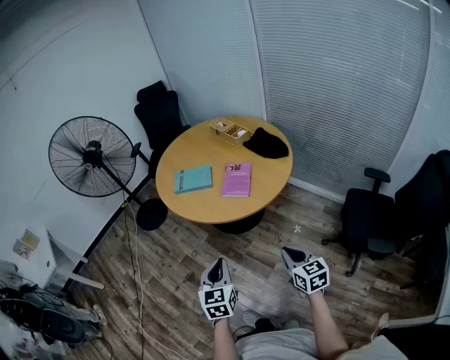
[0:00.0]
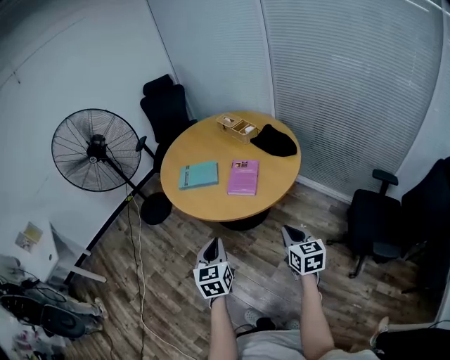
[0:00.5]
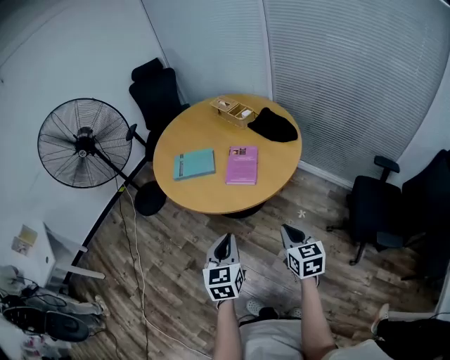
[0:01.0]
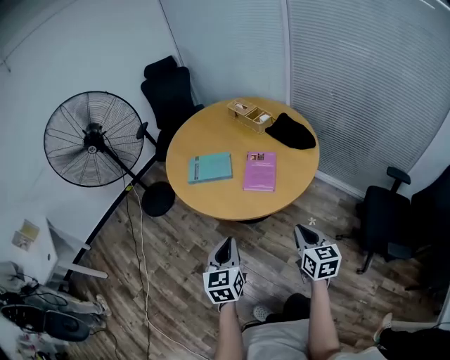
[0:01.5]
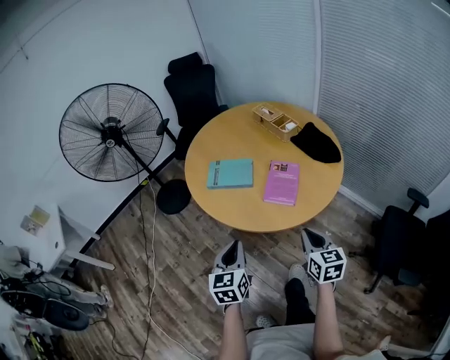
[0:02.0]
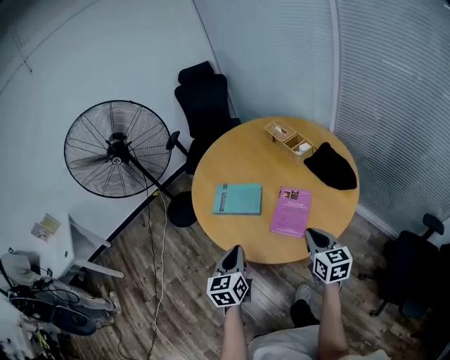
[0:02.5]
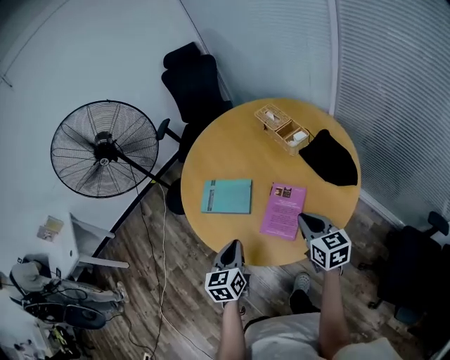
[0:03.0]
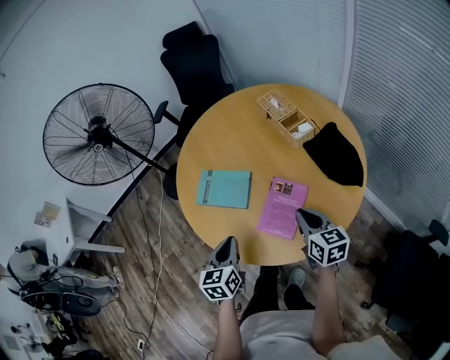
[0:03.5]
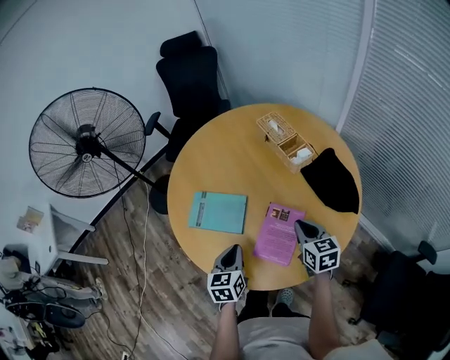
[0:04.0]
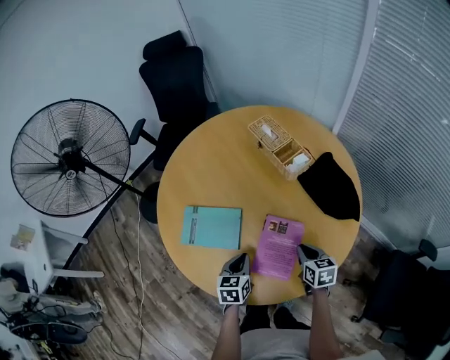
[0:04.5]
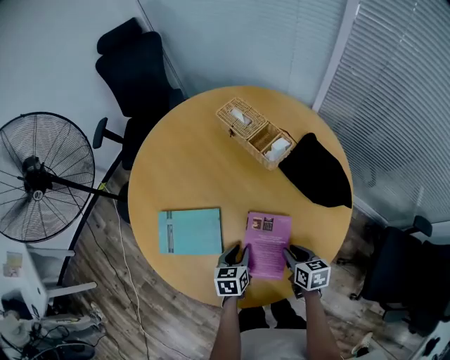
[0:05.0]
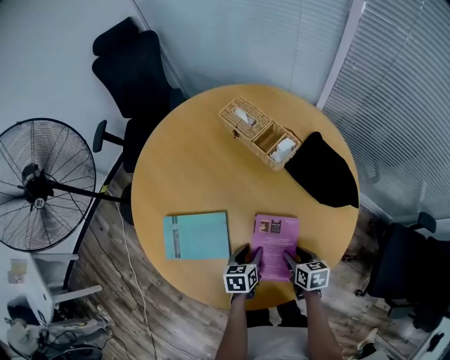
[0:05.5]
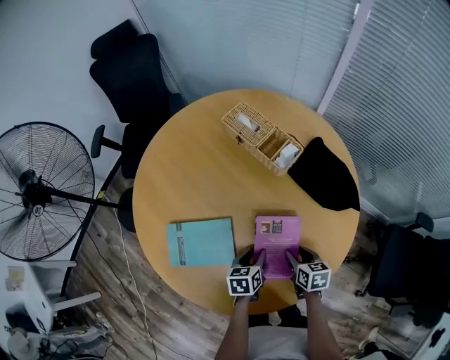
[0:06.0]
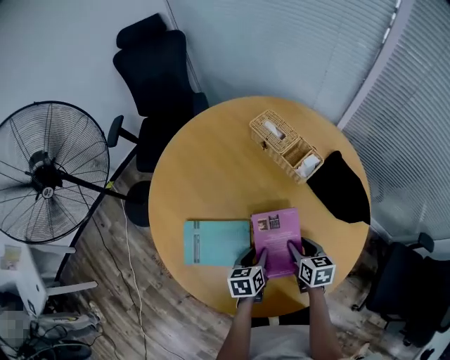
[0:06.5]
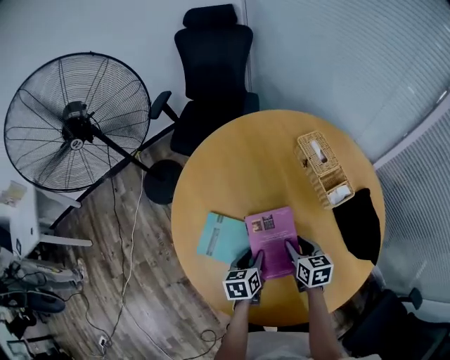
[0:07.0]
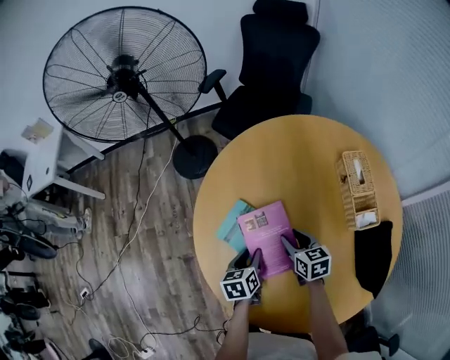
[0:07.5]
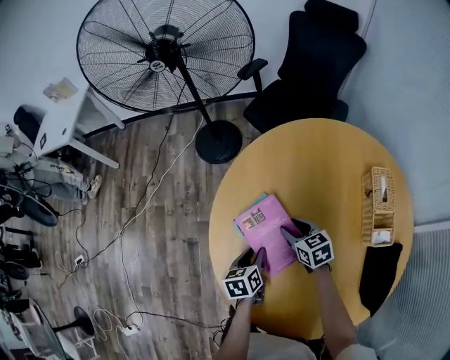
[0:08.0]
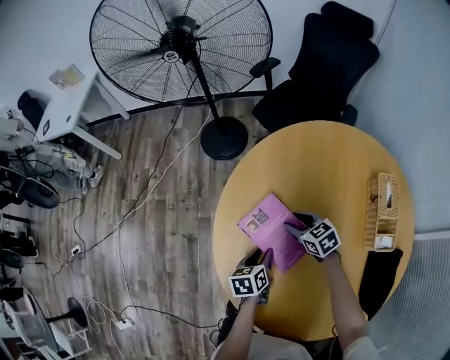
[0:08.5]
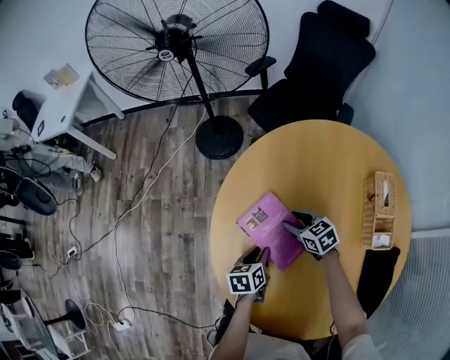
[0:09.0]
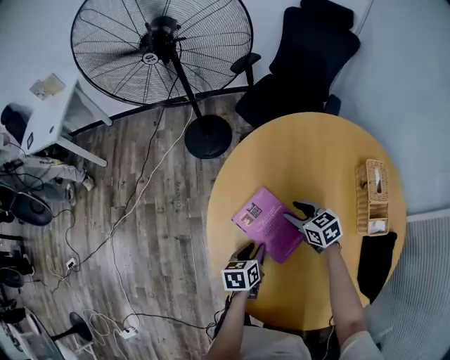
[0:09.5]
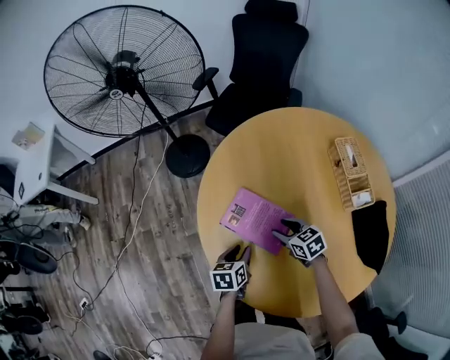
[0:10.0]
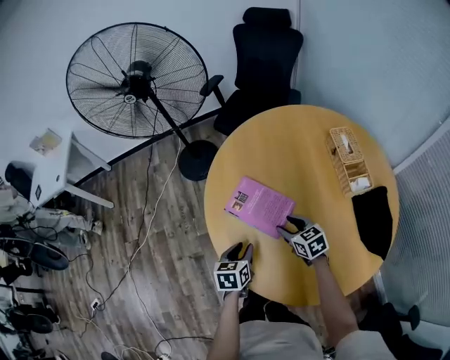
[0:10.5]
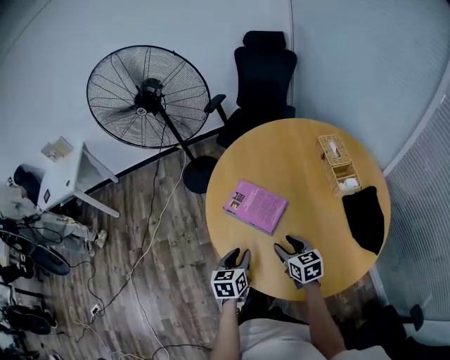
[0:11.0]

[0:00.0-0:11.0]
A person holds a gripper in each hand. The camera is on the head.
0:00.0 to 0:02.0: The left gripper is displaced forward and to the left by roughly 20 cm; the right gripper heads forward, covering roughly 20 cm.
0:02.0 to 0:03.5: The left gripper moves forward and to the right, approximately 20 cm, while the right gripper moves forward, approximately 25 cm.
0:03.5 to 0:05.5: The left gripper travels downward, forward and to the right by about 30 cm, changes its angle by some 40 degrees, and opens up. The right gripper is displaced downward by some 20 cm, turns by about 30 degrees, and opens its fingers.
0:05.5 to 0:07.5: The right gripper moves roughly 30 cm, and rolls counterclockwise, seen from behind, by approximately 40 degrees, while the left gripper shifts by approximately 20 cm, and rotates some 50 degrees.
0:07.5 to 0:09.0: The right gripper shifts approximately 10 cm forward and to the left, and swivels some 30 degrees.
0:09.0 to 0:11.0: The right gripper goes approximately 25 cm backward and upward, and swivels approximately 40 degrees. Meanwhile the left gripper travels backward and upward by some 15 cm, and swivels approximately 30 degrees.

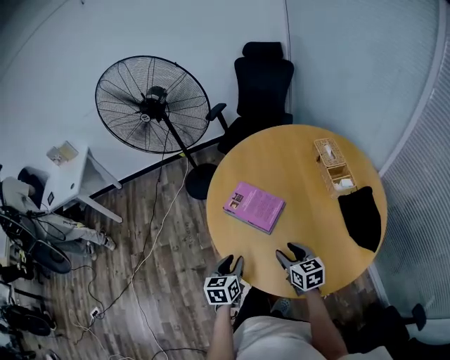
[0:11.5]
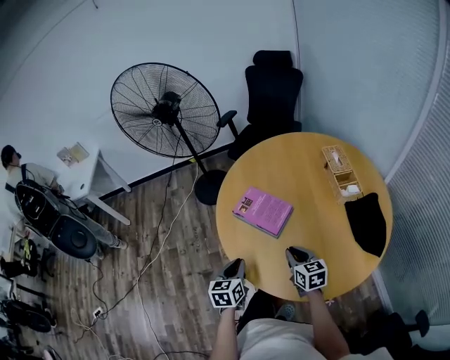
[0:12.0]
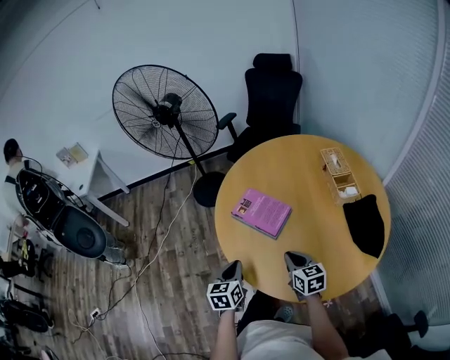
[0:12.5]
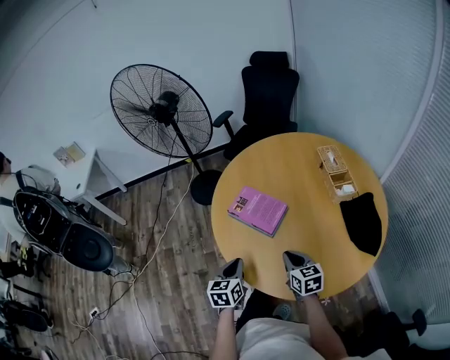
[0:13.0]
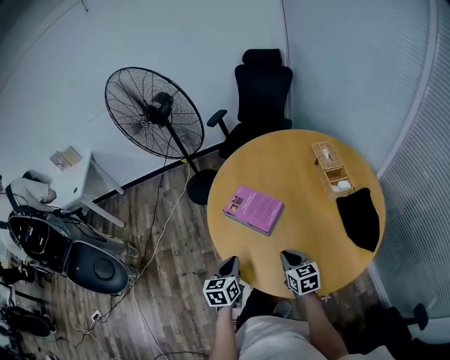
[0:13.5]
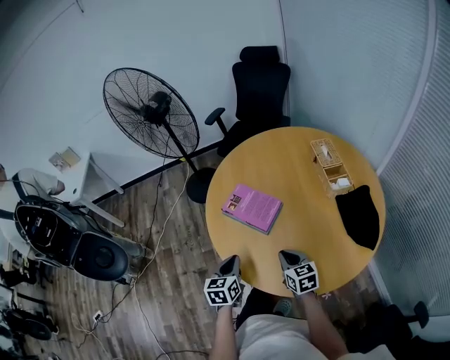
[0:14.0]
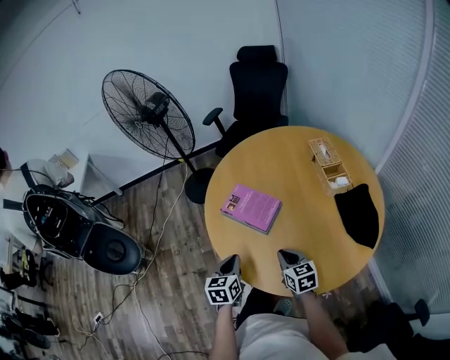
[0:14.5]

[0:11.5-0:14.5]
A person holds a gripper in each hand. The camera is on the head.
0:11.5 to 0:13.0: The left gripper closes. Meanwhile the right gripper closes up.
0:13.0 to 0:14.5: The grippers move only a little.

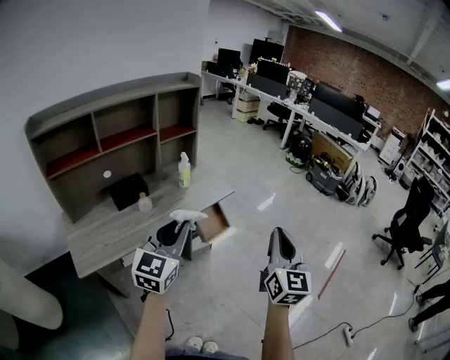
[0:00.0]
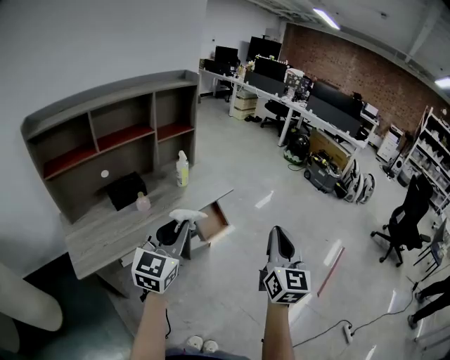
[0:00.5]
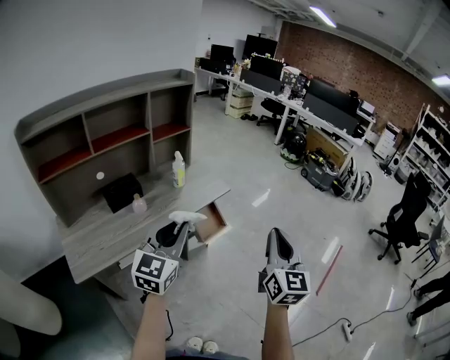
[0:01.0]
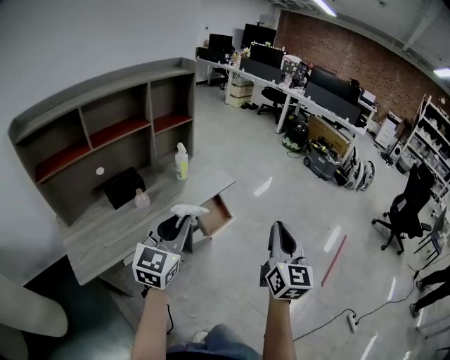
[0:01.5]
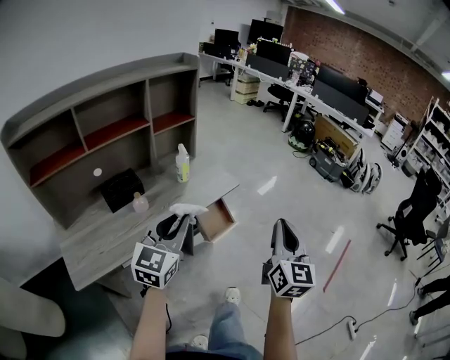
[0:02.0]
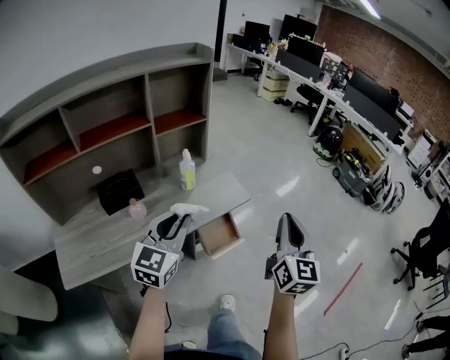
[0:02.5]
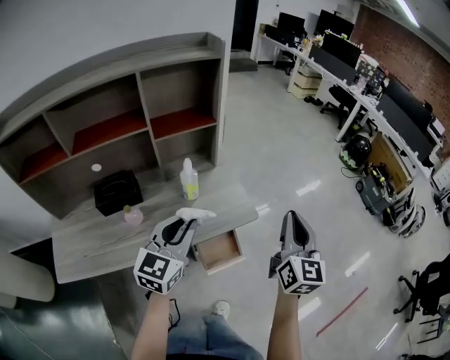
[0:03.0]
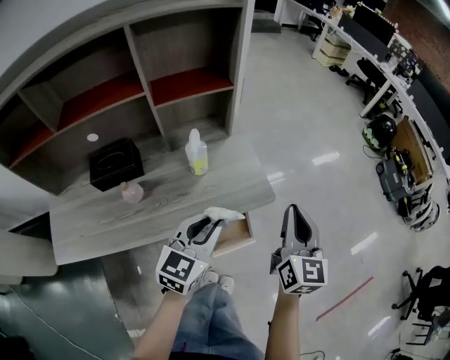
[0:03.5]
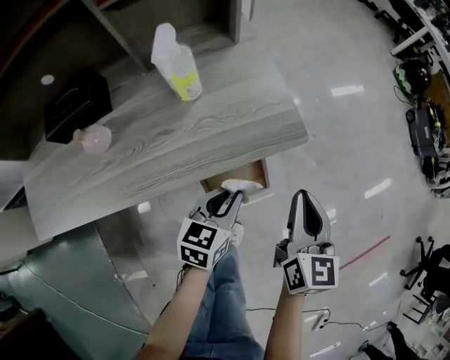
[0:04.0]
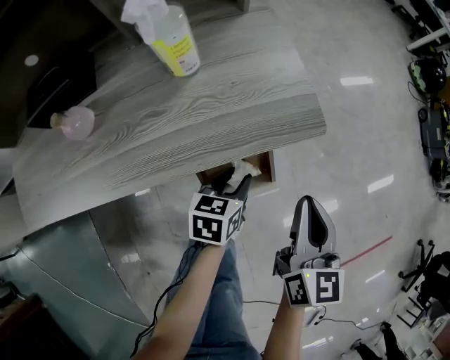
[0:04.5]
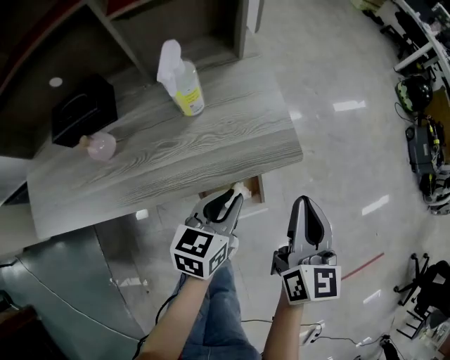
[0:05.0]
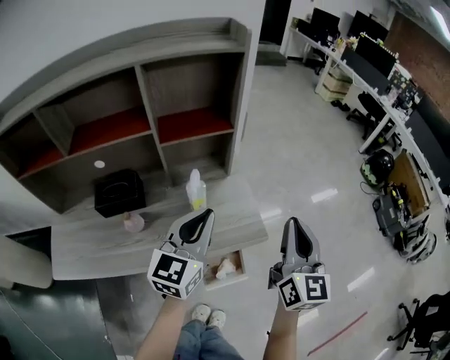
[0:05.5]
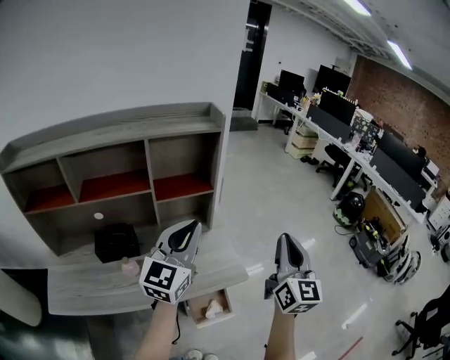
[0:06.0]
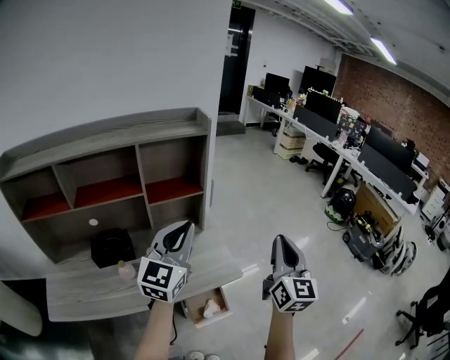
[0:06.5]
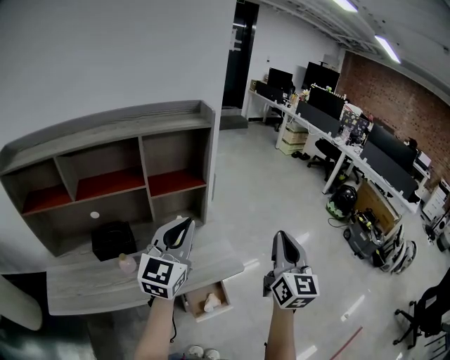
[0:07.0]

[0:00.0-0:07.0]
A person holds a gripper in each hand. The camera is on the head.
0:00.0 to 0:02.0: The two grippers go approximately 10 cm forward.
0:02.0 to 0:03.5: The left gripper heads forward and downward, covering some 30 cm, and rotates about 20 degrees. The right gripper heads forward, covering about 35 cm, and rotates about 20 degrees.
0:03.5 to 0:05.0: Both grippers travel together downward, roughly 20 cm. The left gripper rotates about 30 degrees.
0:05.0 to 0:07.0: Both grippers travel together upward, roughly 35 cm. The left gripper tilts its fingers about 40 degrees upward; the right gripper turns by about 30 degrees.

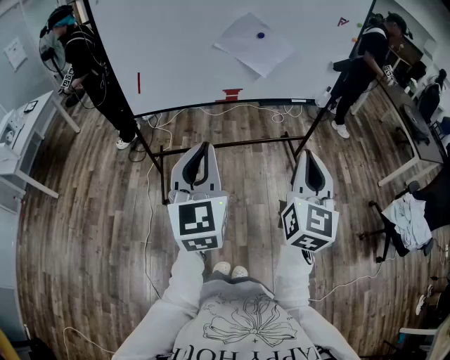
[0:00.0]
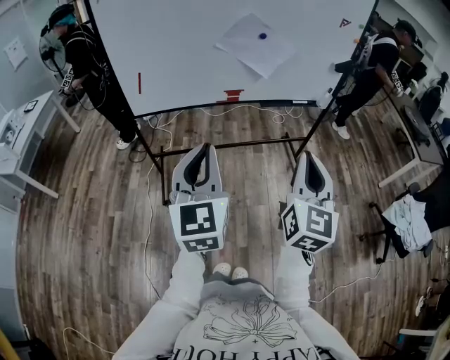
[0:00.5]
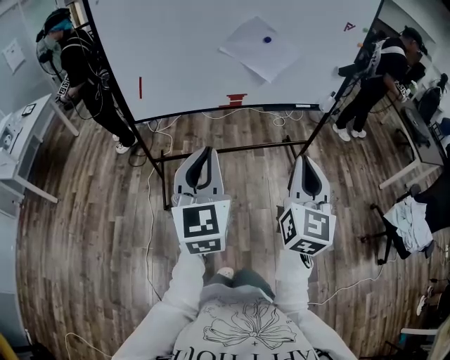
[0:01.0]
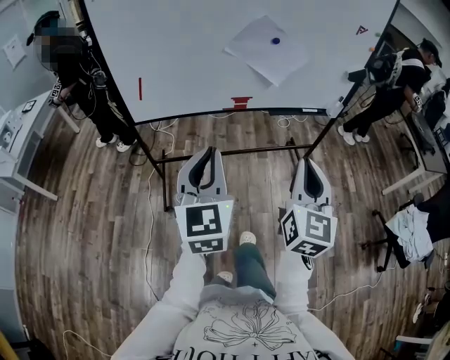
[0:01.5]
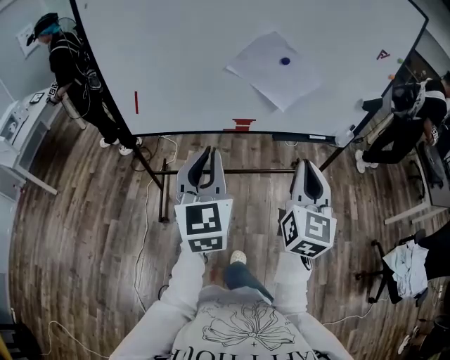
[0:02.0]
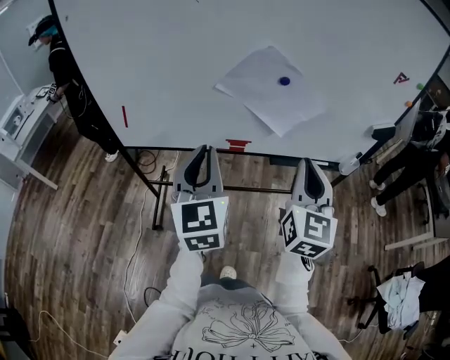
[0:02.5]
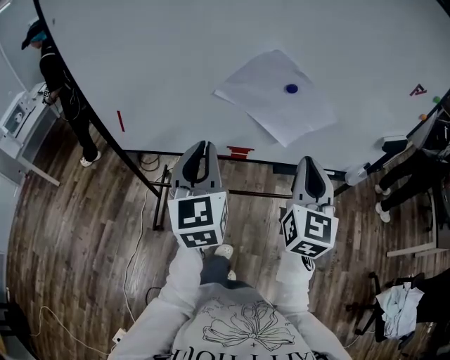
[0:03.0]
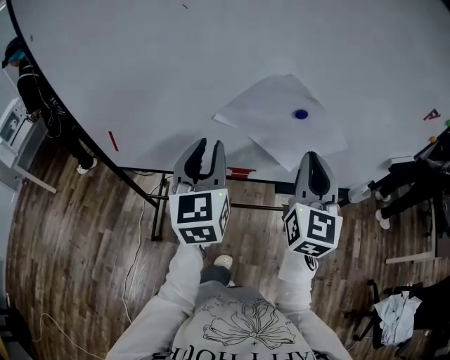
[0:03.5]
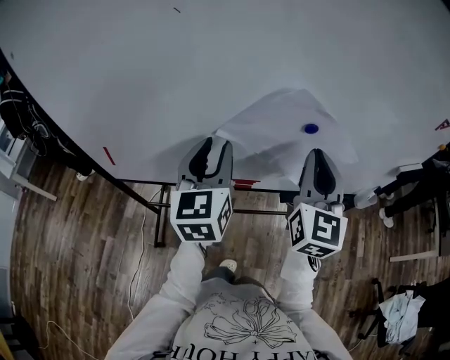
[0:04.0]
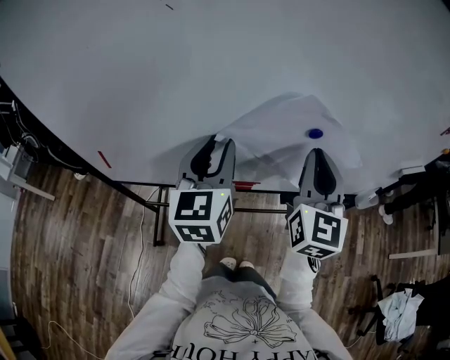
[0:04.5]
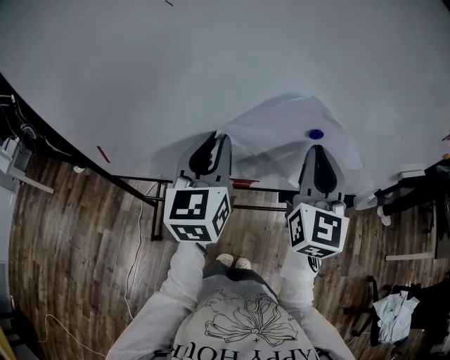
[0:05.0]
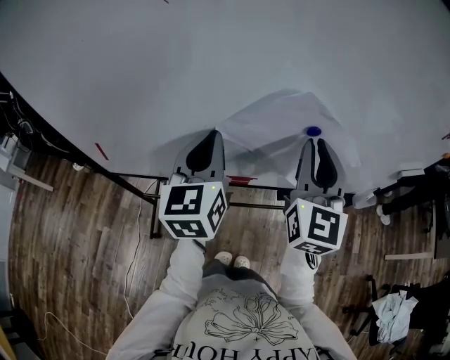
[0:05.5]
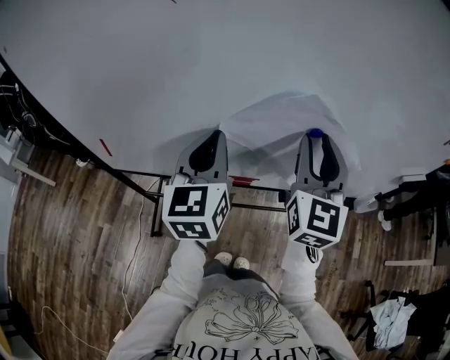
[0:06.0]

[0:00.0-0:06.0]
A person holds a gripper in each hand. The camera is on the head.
0:00.0 to 0:02.0: Both grippers travel together forward, approximately 20 cm.
0:02.0 to 0:04.0: The two grippers go about 35 cm forward. The left gripper opens.
0:04.0 to 0:06.0: The left gripper closes its fingers, while the right gripper opens its fingers.
